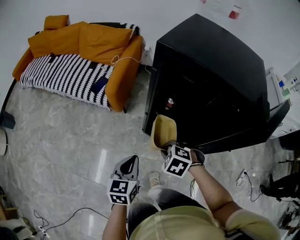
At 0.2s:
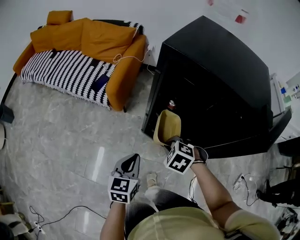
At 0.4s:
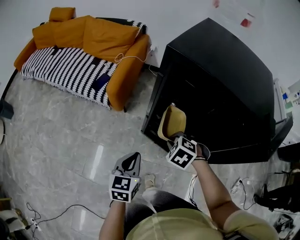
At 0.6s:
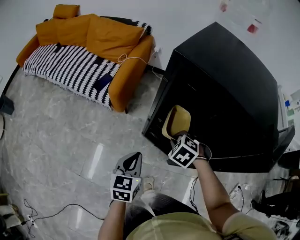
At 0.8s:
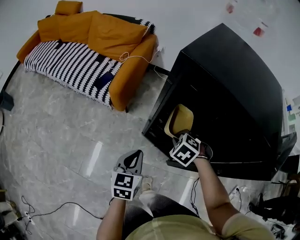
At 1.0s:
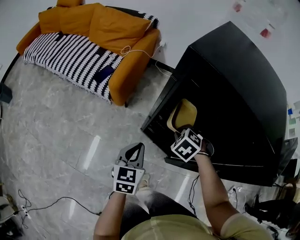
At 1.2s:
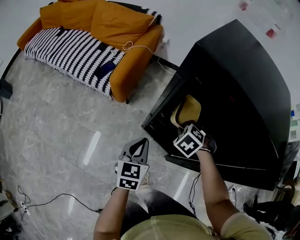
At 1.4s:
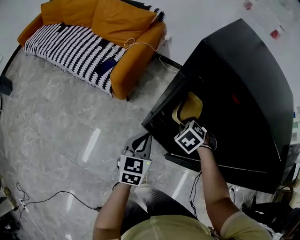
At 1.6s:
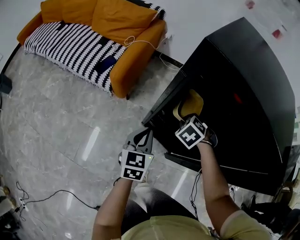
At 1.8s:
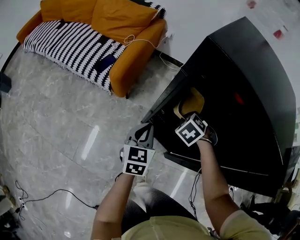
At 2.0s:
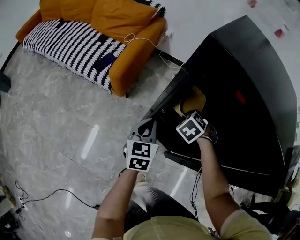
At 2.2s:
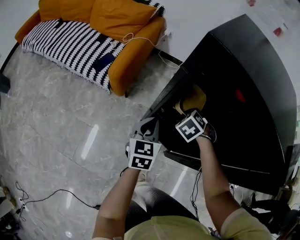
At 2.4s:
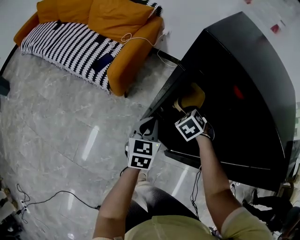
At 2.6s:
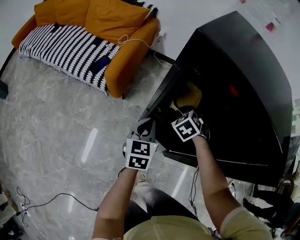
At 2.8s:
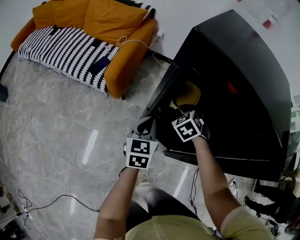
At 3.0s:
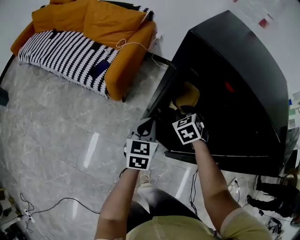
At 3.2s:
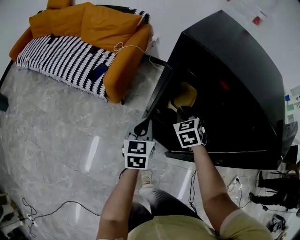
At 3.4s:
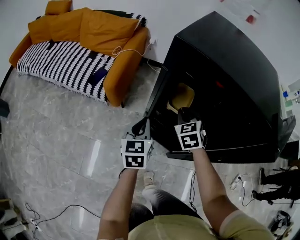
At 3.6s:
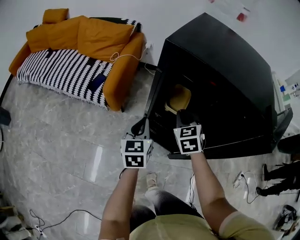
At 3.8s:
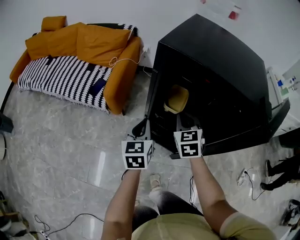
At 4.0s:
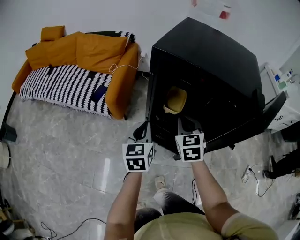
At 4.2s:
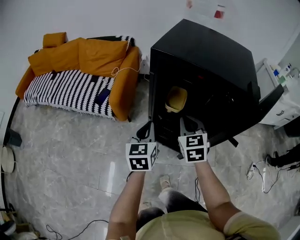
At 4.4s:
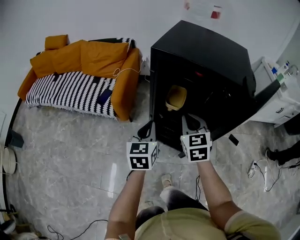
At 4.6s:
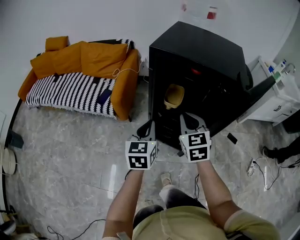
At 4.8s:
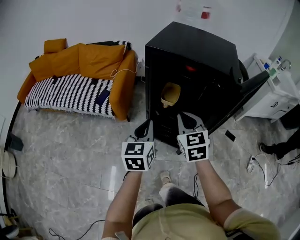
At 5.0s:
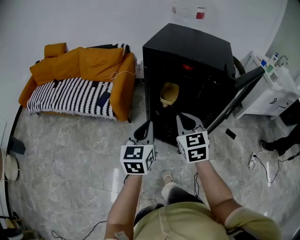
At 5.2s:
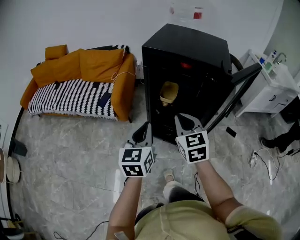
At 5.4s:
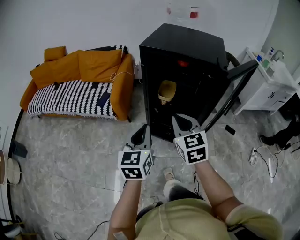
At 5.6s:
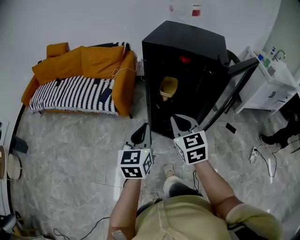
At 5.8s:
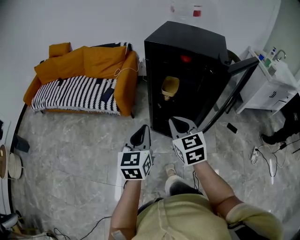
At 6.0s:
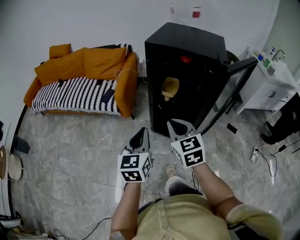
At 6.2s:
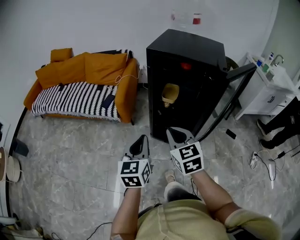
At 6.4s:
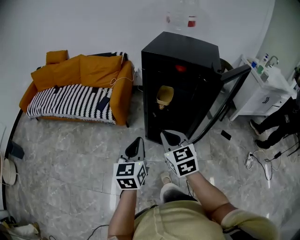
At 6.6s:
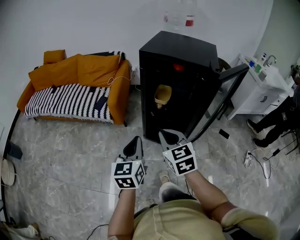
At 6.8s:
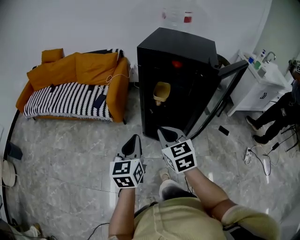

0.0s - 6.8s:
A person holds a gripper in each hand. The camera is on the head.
0.0s - 1.4s: The right gripper moves forward and to the right, about 20 cm. The left gripper moves forward, approximately 15 cm.
1.4s - 2.8s: The left gripper is displaced forward by roughly 5 cm.
2.8s - 4.0s: The right gripper is displaced upward and backward by some 20 cm, and swivels about 40 degrees. Meanwhile the left gripper travels upward by approximately 10 cm.
4.0s - 5.4s: Both grippers travel together backward and upward, approximately 20 cm.
5.4s - 6.8s: The two grippers go roughly 5 cm backward.

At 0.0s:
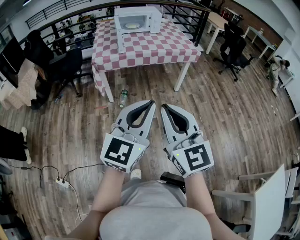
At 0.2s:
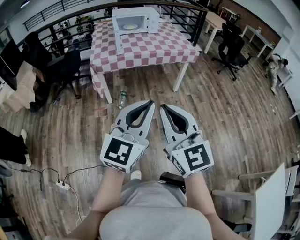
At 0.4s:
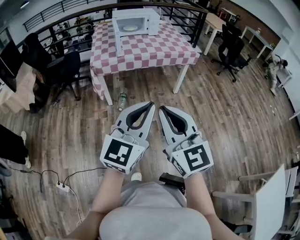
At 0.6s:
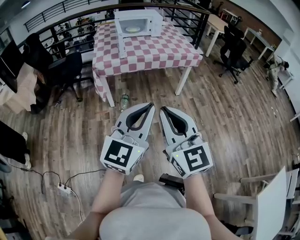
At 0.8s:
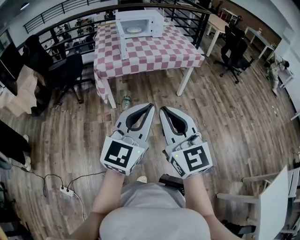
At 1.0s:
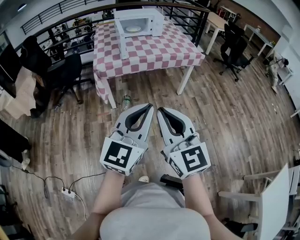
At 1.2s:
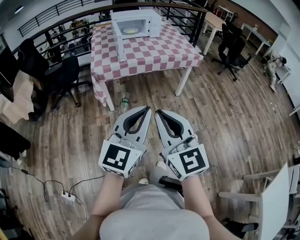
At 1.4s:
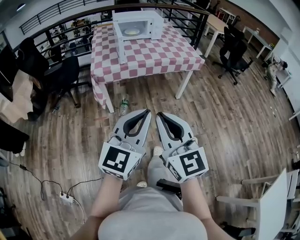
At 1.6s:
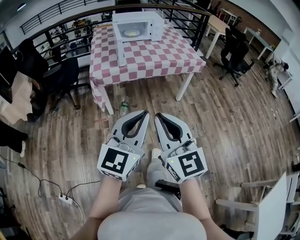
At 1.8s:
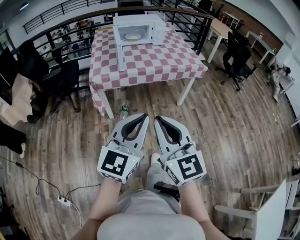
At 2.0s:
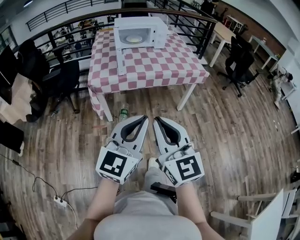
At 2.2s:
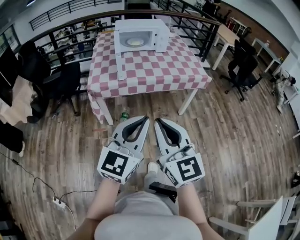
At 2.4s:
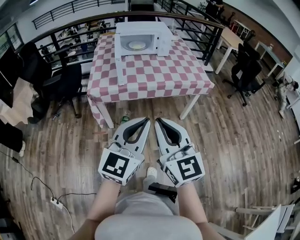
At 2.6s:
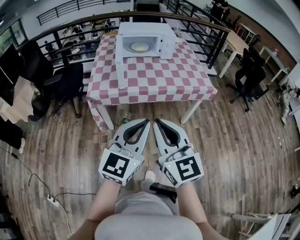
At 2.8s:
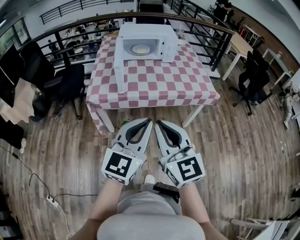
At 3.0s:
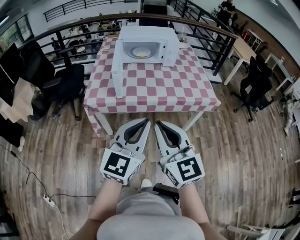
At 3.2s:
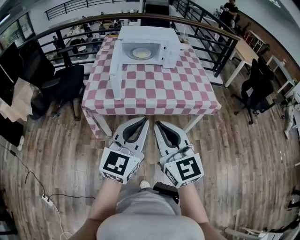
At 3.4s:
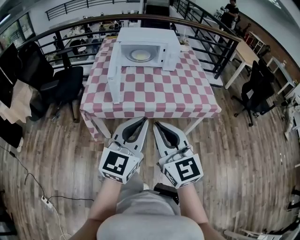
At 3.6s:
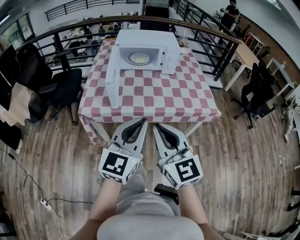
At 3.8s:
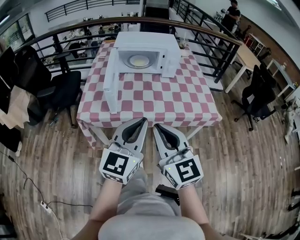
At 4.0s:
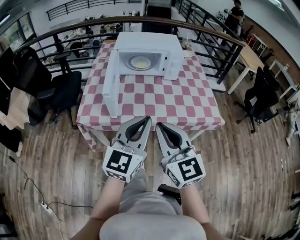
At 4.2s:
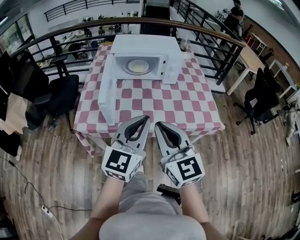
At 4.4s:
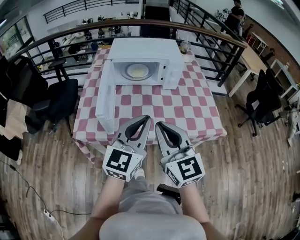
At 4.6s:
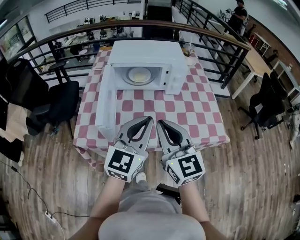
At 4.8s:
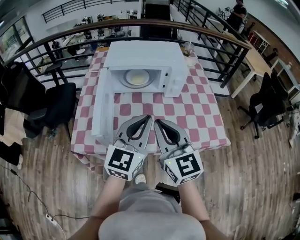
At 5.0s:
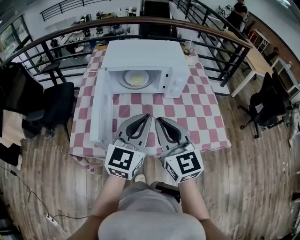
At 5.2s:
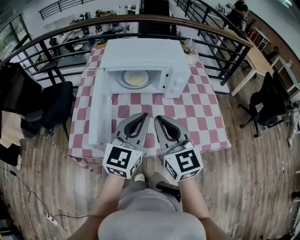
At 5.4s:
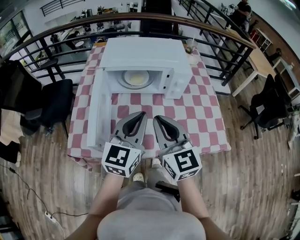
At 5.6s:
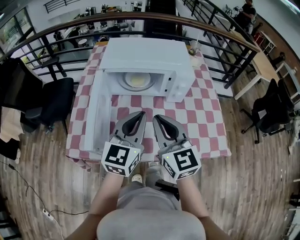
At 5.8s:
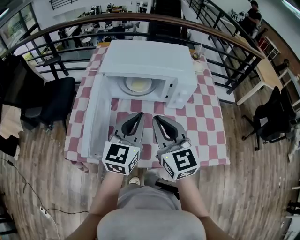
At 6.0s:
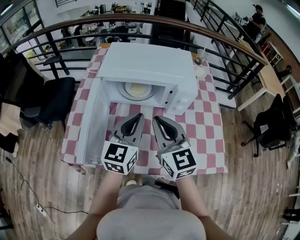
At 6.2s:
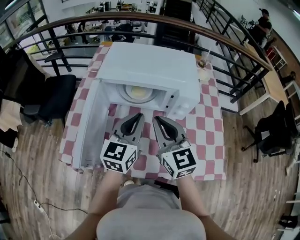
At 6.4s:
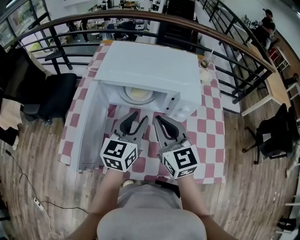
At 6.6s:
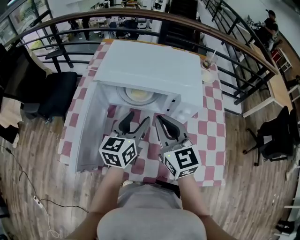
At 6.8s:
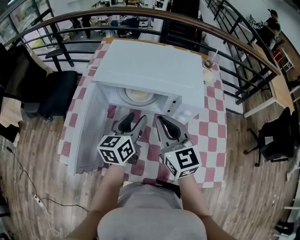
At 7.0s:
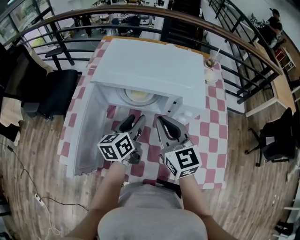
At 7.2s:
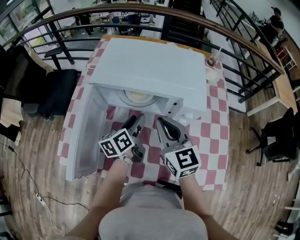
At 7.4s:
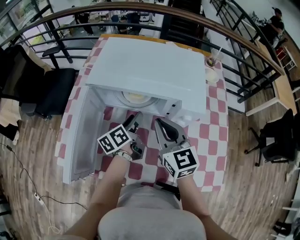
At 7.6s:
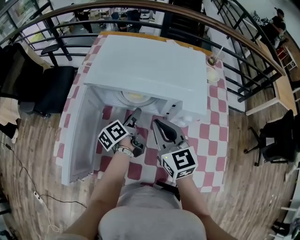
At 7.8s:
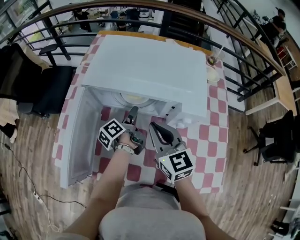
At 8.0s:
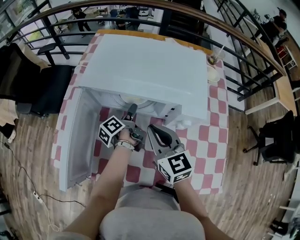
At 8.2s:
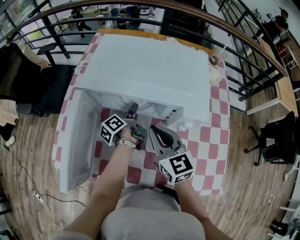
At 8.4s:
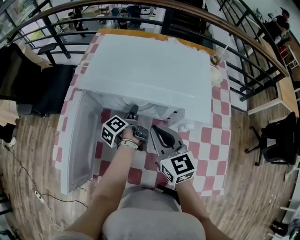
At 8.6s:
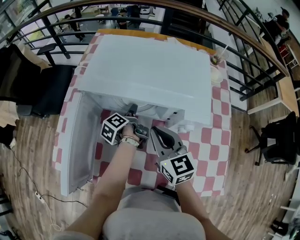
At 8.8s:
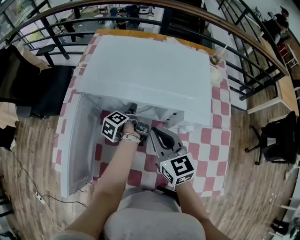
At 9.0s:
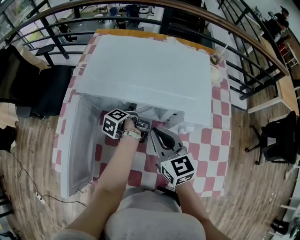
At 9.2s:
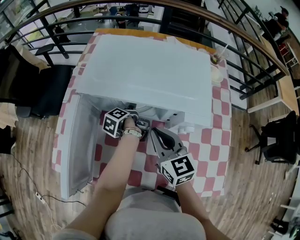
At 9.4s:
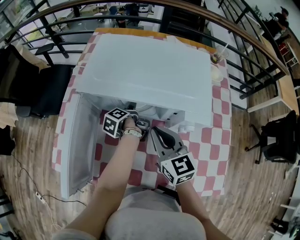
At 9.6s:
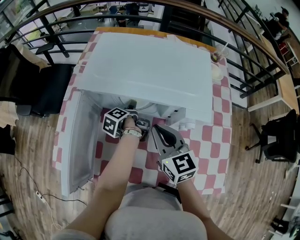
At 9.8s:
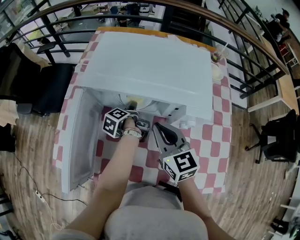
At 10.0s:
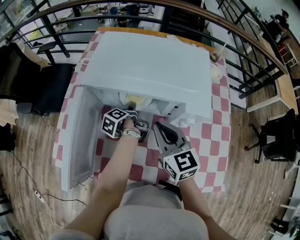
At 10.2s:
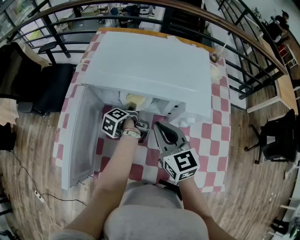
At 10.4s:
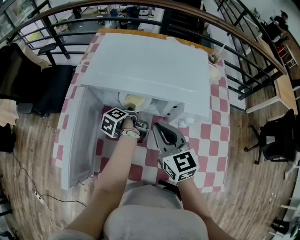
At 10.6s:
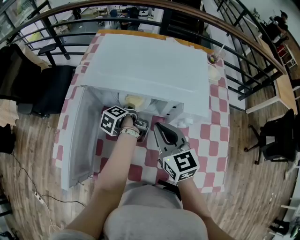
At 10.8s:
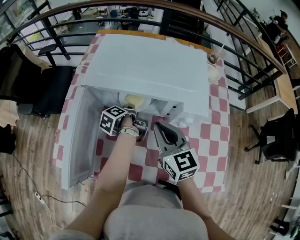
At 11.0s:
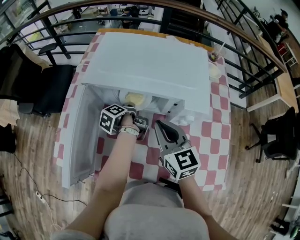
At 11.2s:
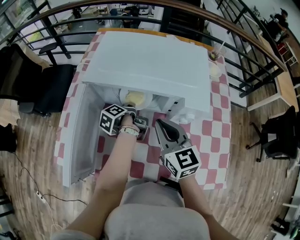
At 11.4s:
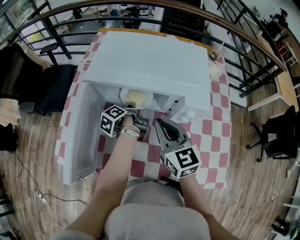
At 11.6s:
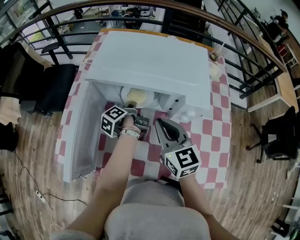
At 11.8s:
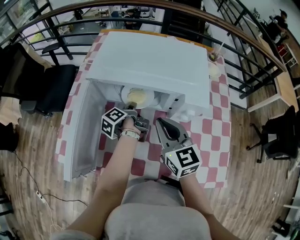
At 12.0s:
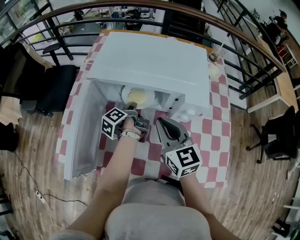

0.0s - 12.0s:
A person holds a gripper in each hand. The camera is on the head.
0.0s - 1.6s: Both grippers move forward and to the left, roughly 15 cm.
1.6s - 3.0s: Both grippers move forward, roughly 30 cm.
3.0s - 4.4s: Both grippers travel together forward, about 25 cm.
4.4s - 6.0s: Both grippers travel together forward, approximately 25 cm.
6.0s - 7.6s: The right gripper is displaced forward and downward by some 15 cm, while the left gripper travels downward and forward by some 25 cm, rotates around the line of its fingers by roughly 70 degrees, counterclockwise from behind, and opens up.
7.6s - 9.0s: The left gripper heads downward and forward, covering some 10 cm, and swivels roughly 30 degrees.
9.0s - 10.4s: The left gripper closes up.
10.4s - 12.0s: The left gripper closes up.

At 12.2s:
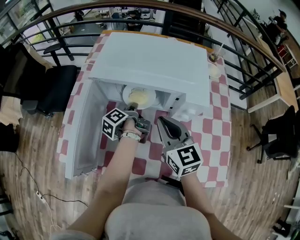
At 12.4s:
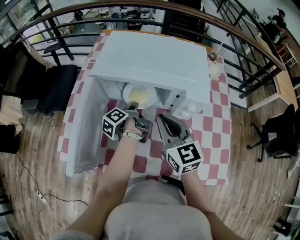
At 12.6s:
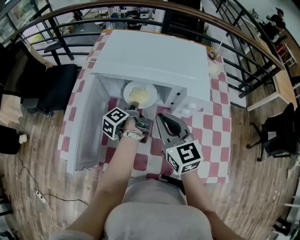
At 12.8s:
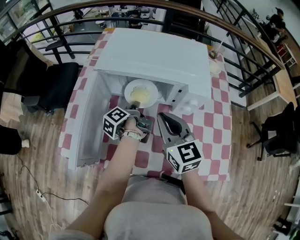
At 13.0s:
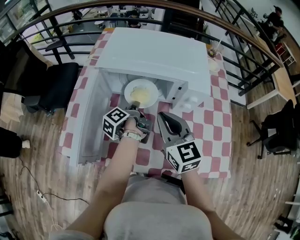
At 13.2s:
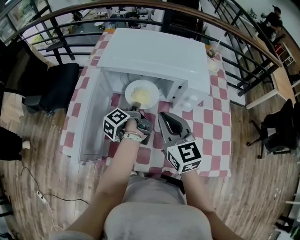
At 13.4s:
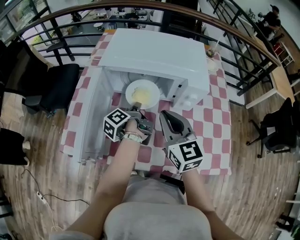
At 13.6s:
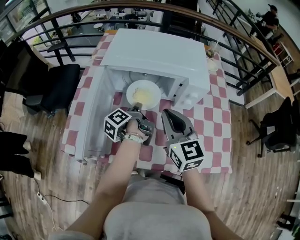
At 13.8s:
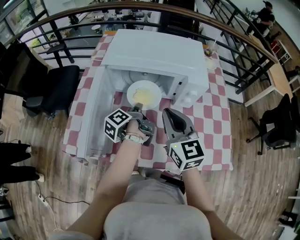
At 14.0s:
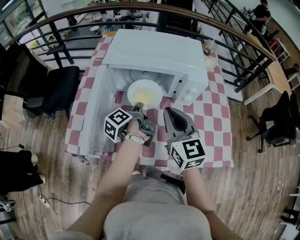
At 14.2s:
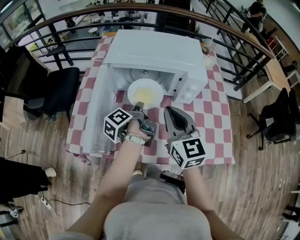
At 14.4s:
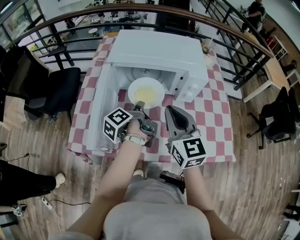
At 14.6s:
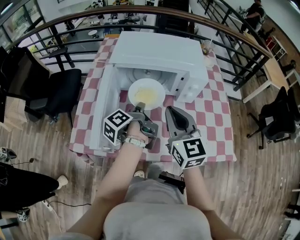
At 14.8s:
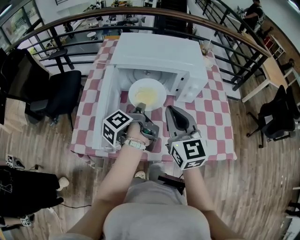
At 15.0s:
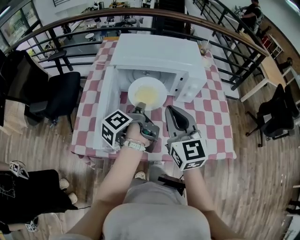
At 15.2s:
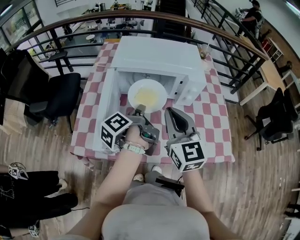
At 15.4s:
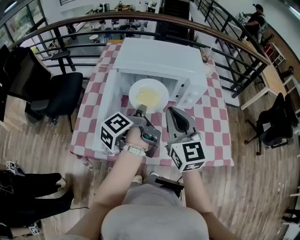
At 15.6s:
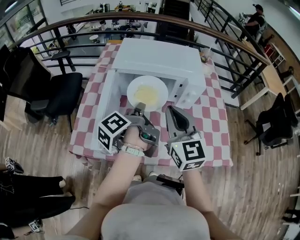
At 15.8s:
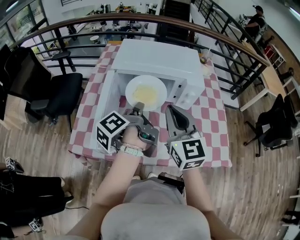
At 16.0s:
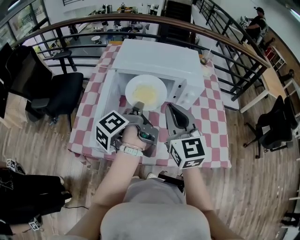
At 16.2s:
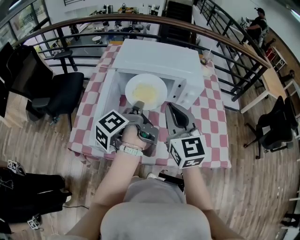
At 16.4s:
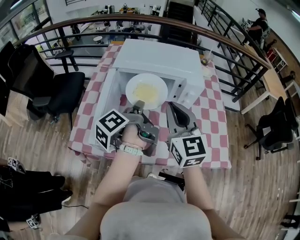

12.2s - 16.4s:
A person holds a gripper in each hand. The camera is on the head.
12.2s - 13.6s: The grippers both shift backward by roughly 5 cm.
13.6s - 15.0s: The right gripper travels backward and upward by roughly 10 cm. The left gripper shifts some 10 cm upward and backward.
15.0s - 16.4s: The left gripper travels upward by some 5 cm.

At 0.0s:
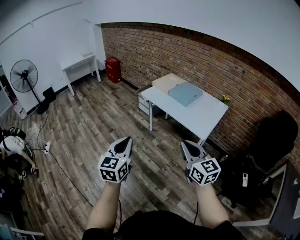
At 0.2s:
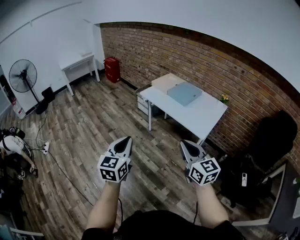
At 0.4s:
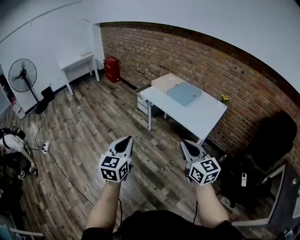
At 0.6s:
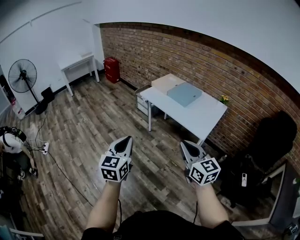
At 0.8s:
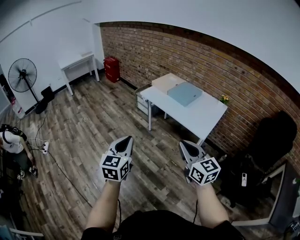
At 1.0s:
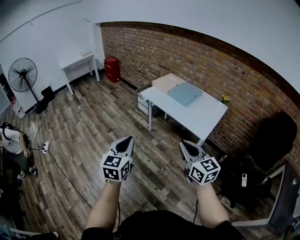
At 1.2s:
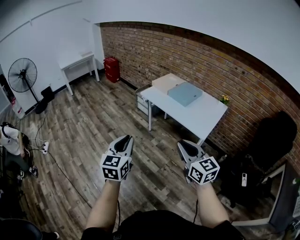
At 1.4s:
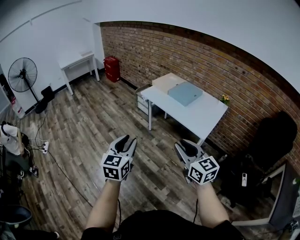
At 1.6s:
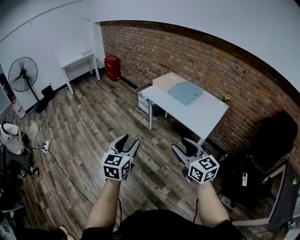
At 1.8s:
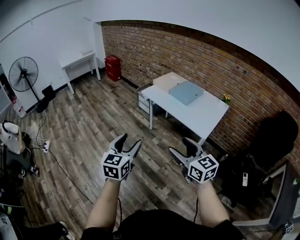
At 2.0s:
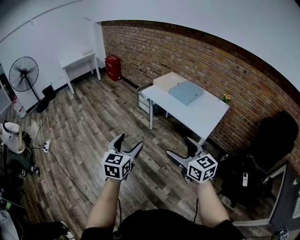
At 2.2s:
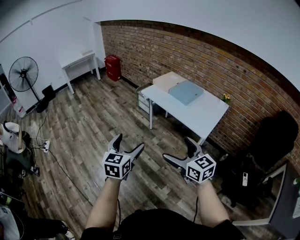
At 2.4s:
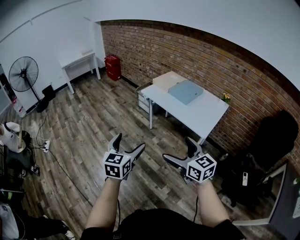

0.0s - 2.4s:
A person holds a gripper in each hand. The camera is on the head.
0.0s - 1.2s: There are only small adjustments of the grippers.
1.2s - 2.4s: The left gripper opens up; the right gripper opens its fingers.
